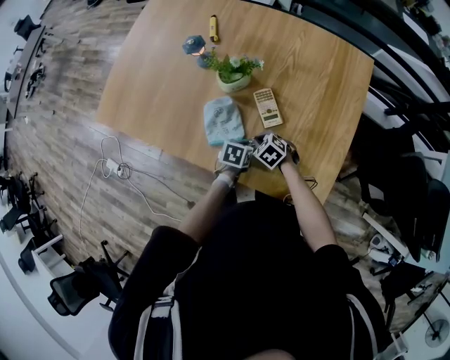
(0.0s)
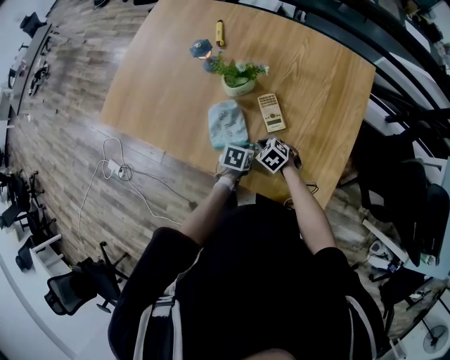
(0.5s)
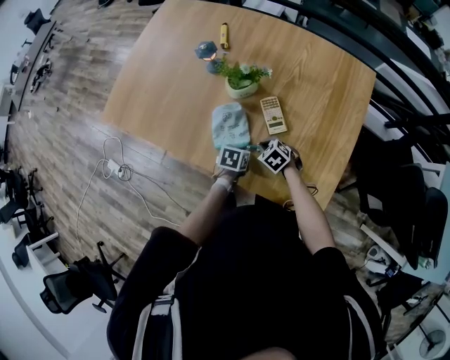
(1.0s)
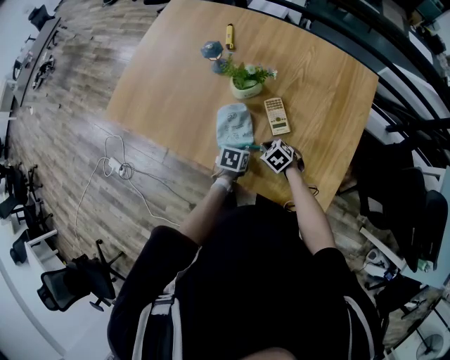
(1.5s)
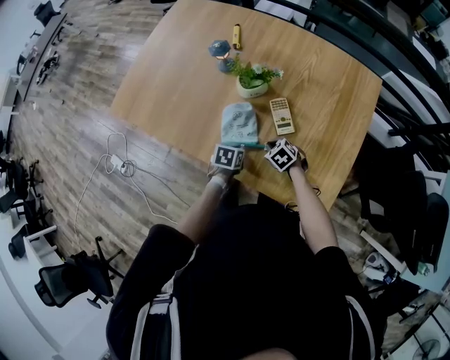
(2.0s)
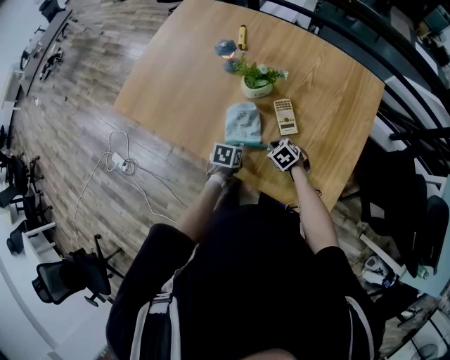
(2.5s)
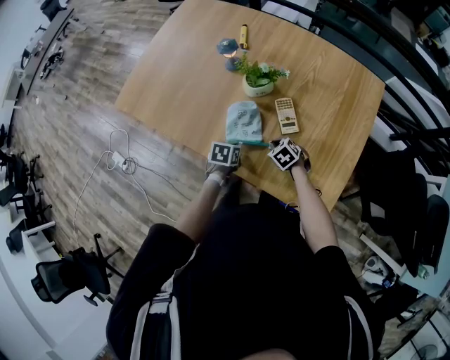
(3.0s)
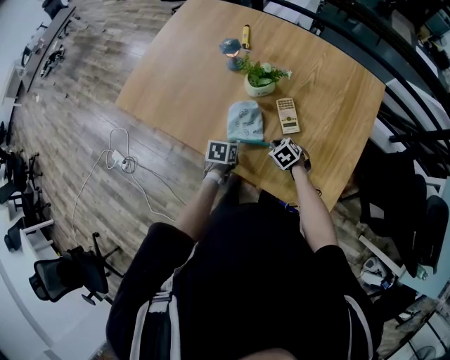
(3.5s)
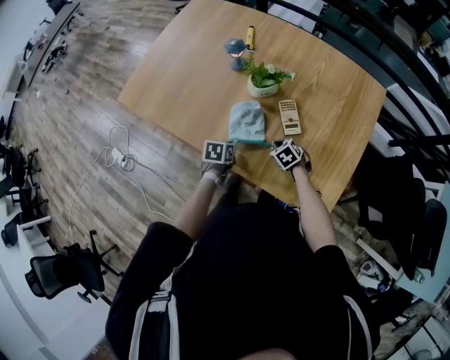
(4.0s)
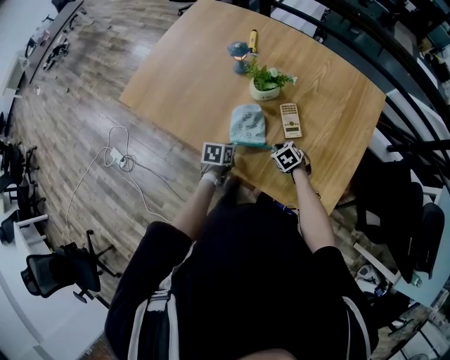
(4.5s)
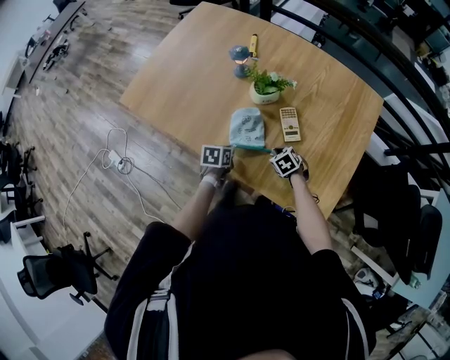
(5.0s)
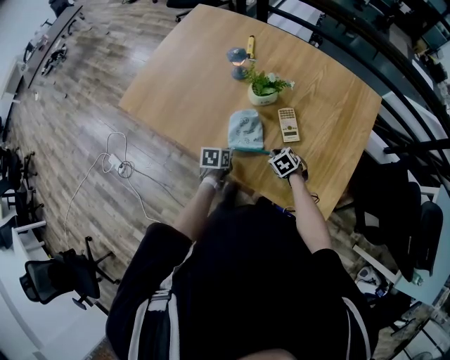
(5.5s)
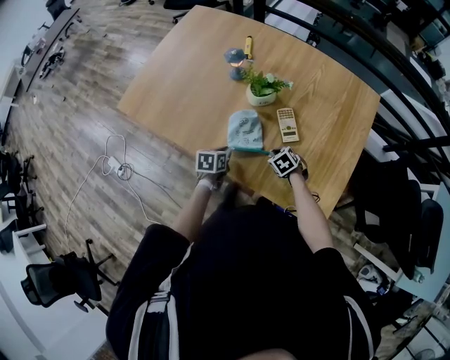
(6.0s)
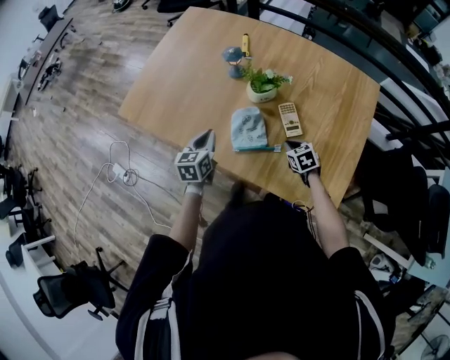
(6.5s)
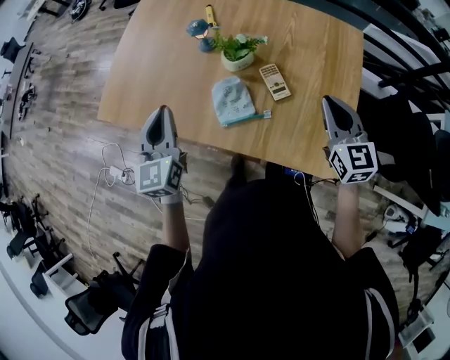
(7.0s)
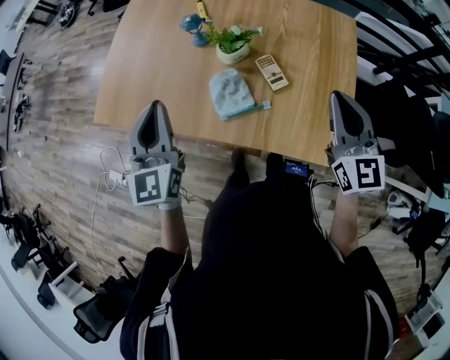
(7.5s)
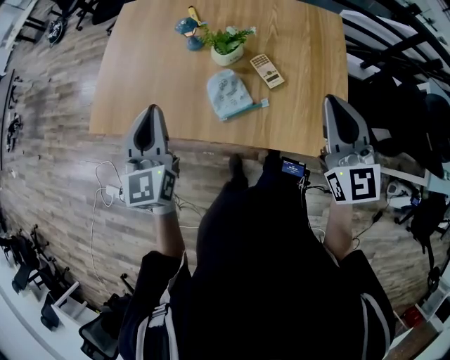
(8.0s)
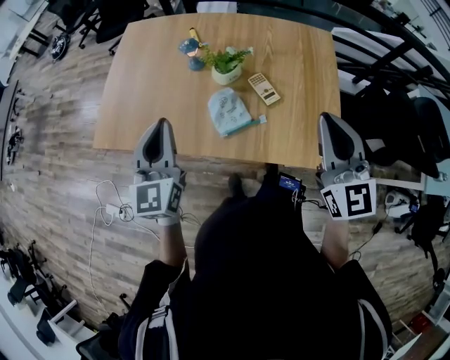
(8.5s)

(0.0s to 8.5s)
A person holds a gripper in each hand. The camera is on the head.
0.0s - 2.0s: The left gripper goes approximately 5 cm to the left.
2.0s - 4.0s: The left gripper moves to the left, approximately 5 cm.
4.0s - 6.5s: The left gripper shifts about 15 cm upward and to the left, and turns by about 30 degrees; the right gripper shifts by roughly 5 cm.
6.5s - 8.5s: The right gripper goes about 40 cm upward, and tilts its fingers some 50 degrees upward; the left gripper is displaced upward by some 20 cm, and changes its angle by roughly 40 degrees.

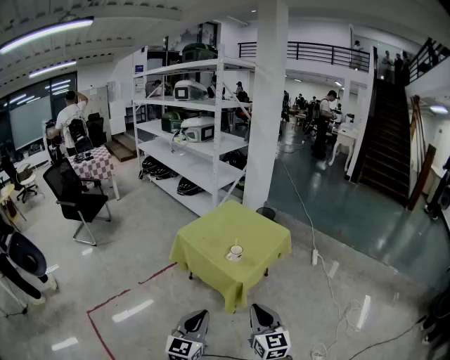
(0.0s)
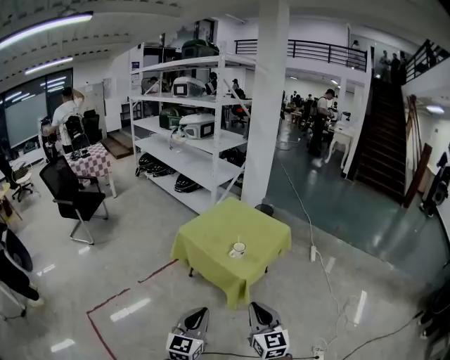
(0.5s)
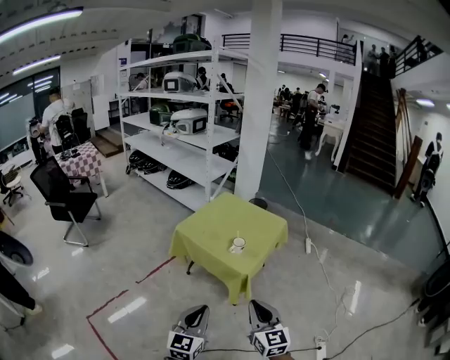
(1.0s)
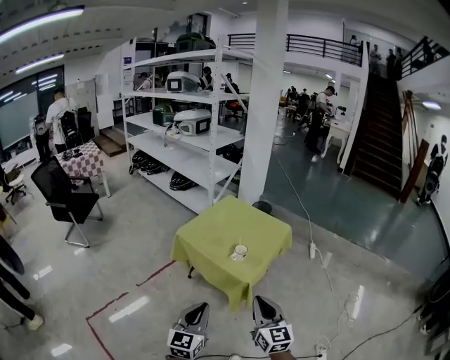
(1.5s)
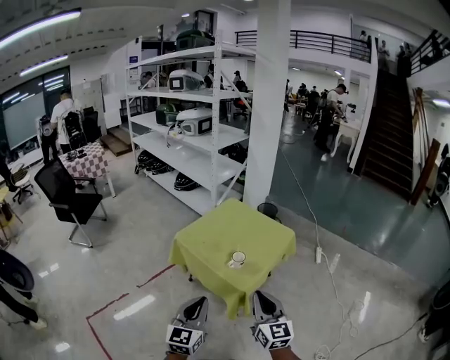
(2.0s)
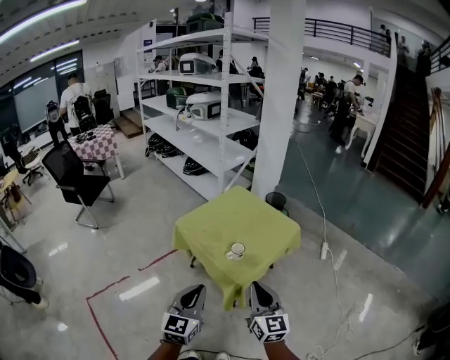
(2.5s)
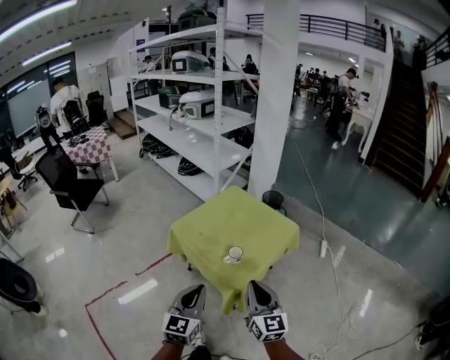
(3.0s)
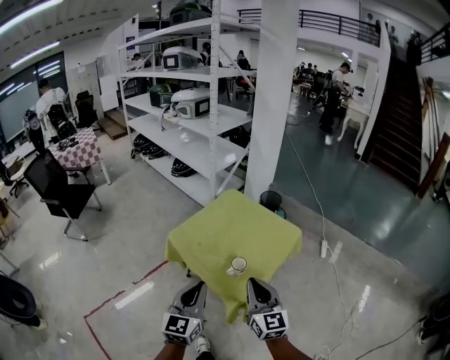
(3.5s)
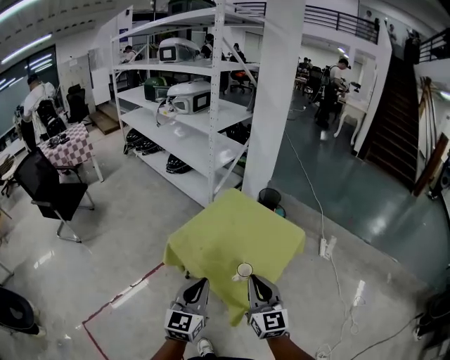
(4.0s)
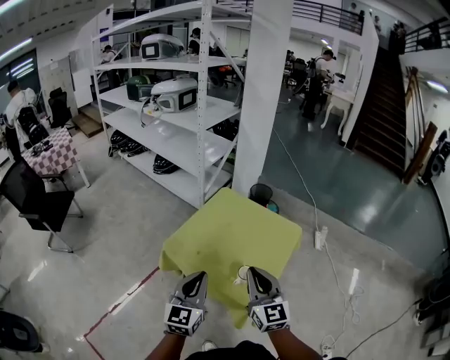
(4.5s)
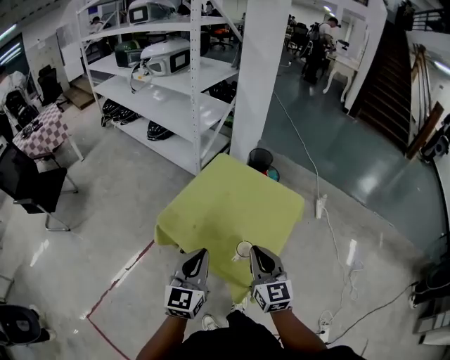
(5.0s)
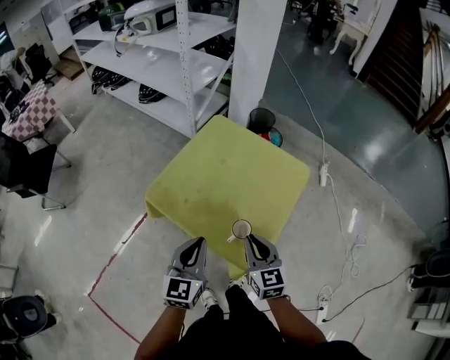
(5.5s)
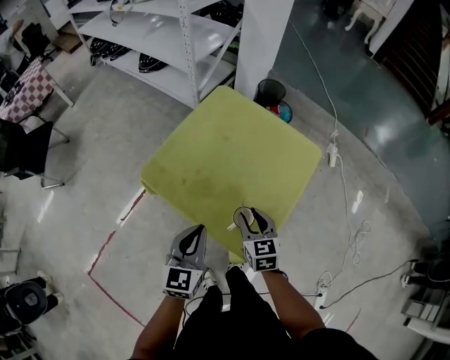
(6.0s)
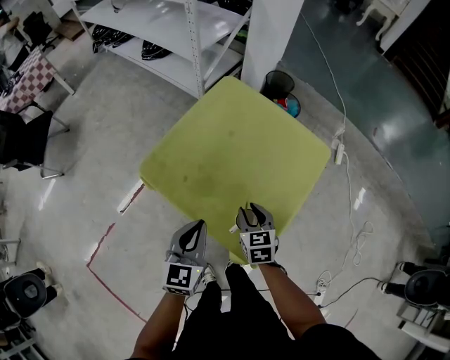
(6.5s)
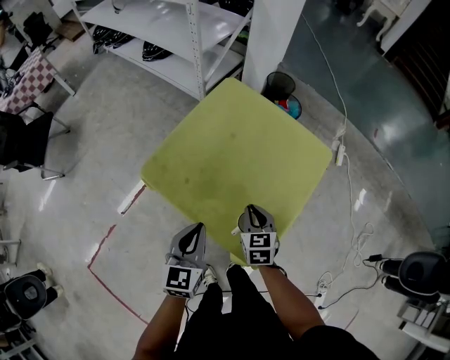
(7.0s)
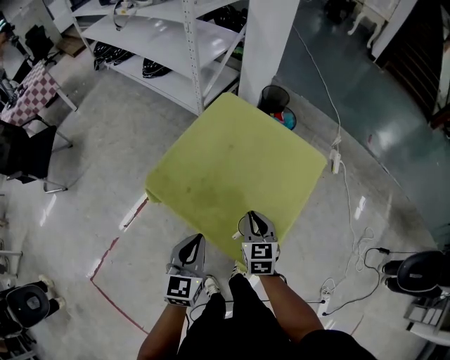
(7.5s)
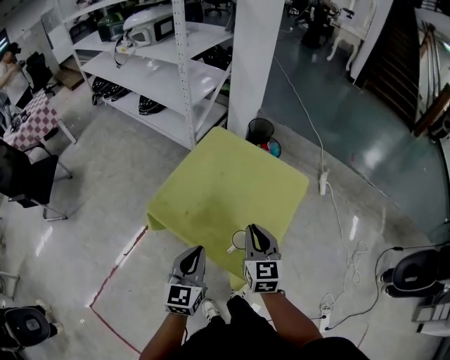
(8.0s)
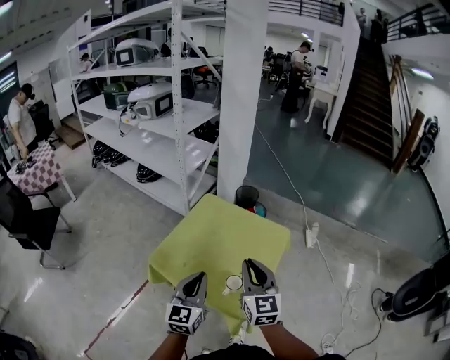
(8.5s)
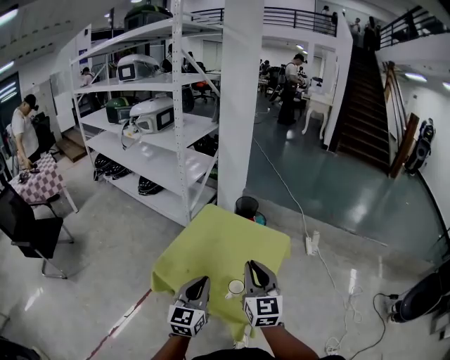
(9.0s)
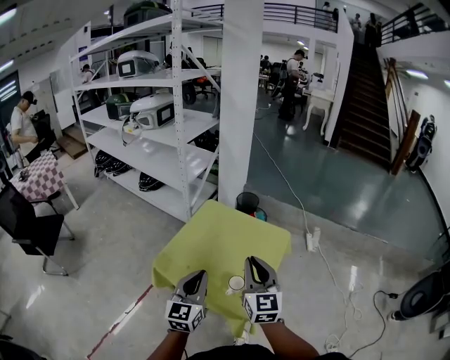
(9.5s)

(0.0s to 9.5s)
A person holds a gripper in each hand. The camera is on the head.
0.0s - 2.0s: Both grippers travel together forward, about 15 cm.
2.0s - 4.0s: The grippers both shift forward by some 20 cm.
4.0s - 5.5s: Both grippers move downward and forward, approximately 15 cm. The right gripper turns by some 20 degrees.
5.5s - 7.5s: The right gripper shifts approximately 10 cm forward and downward, and opens, then closes once more. Meanwhile the left gripper goes some 5 cm downward.
7.5s - 9.5s: The right gripper is displaced upward by about 30 cm, and tilts its fingers approximately 30 degrees upward; the left gripper travels upward by approximately 15 cm, and turns by approximately 20 degrees.

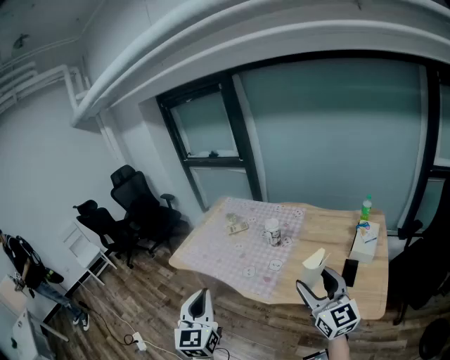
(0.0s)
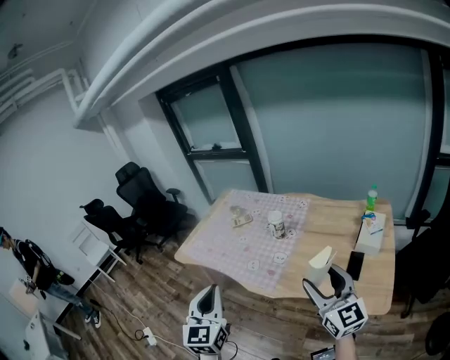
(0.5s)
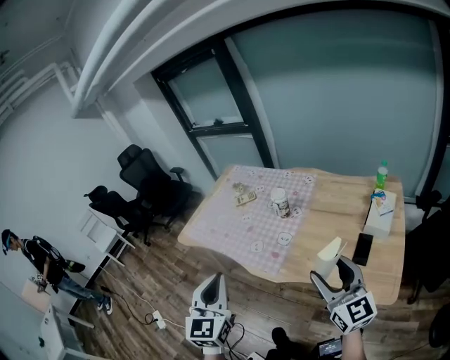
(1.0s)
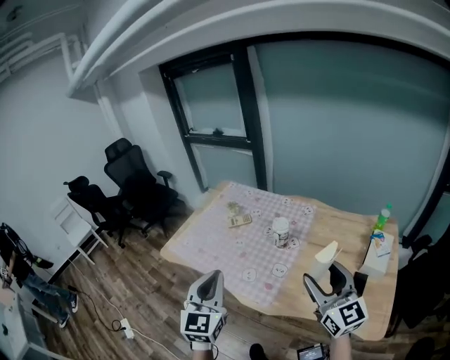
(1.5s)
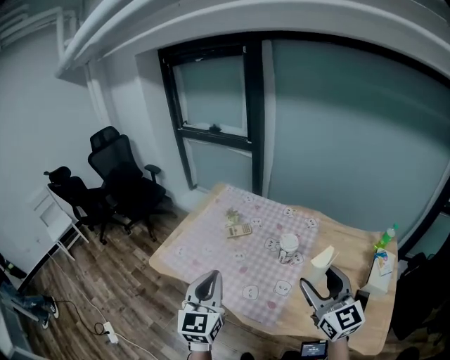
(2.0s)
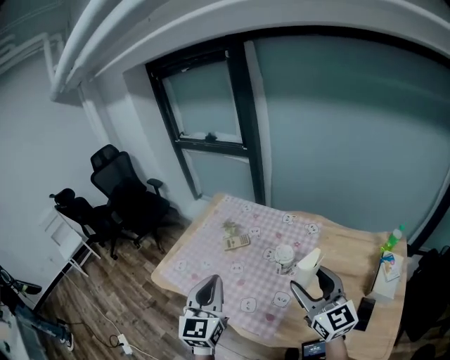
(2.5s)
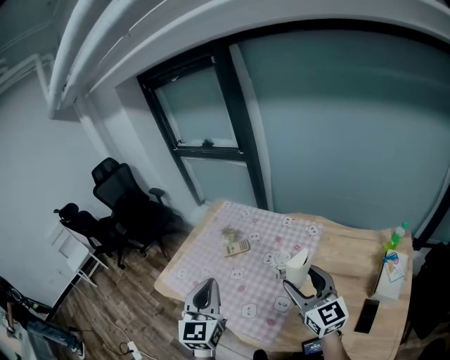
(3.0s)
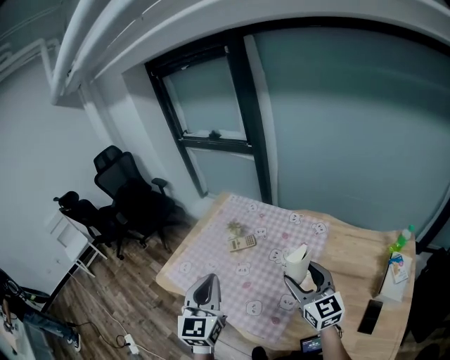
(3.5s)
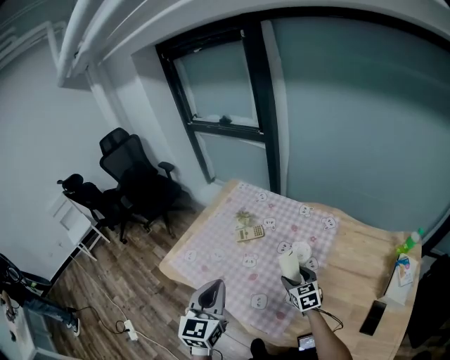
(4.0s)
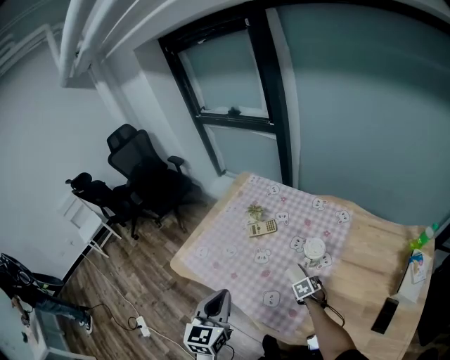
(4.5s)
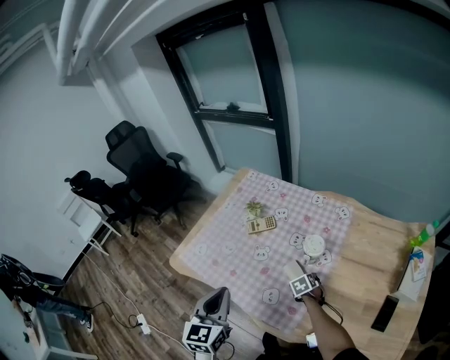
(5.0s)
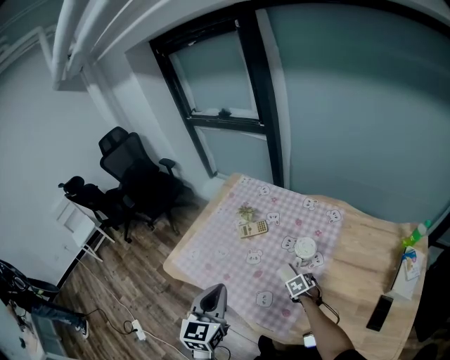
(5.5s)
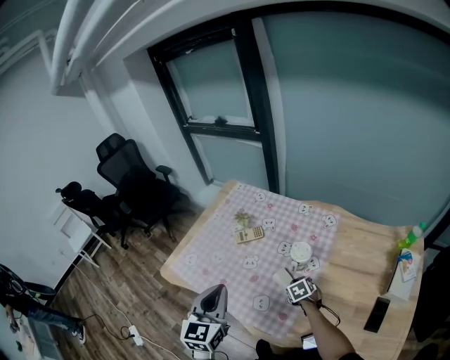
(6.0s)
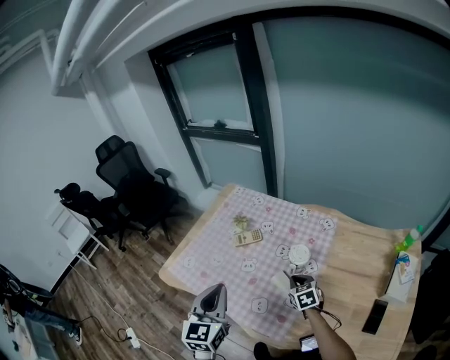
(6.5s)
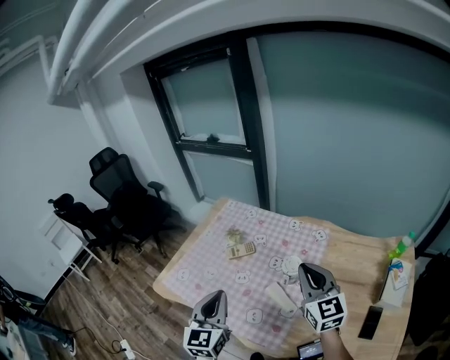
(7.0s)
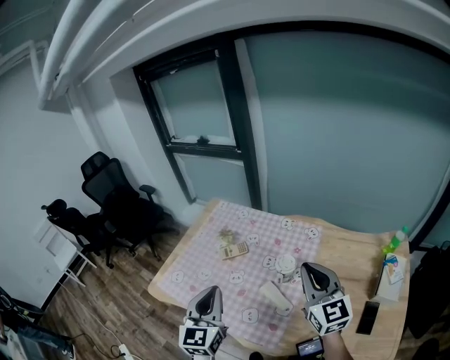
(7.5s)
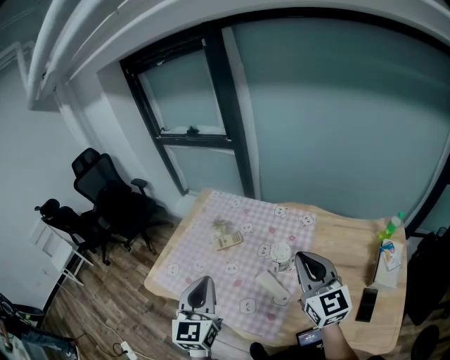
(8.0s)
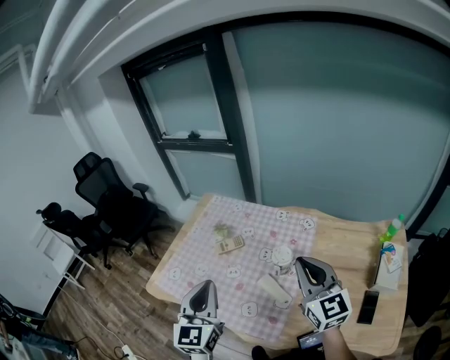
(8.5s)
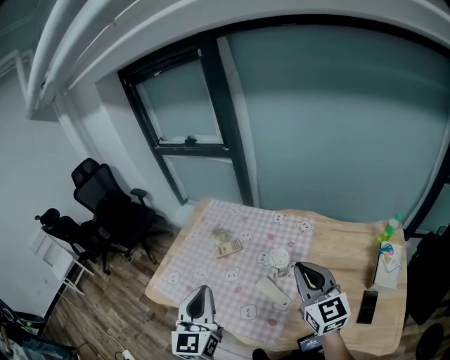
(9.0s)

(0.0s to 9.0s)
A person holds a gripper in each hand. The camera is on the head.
0.0s - 2.0s: Both grippers travel together forward, some 30 cm.
2.0s - 4.5s: The right gripper goes some 50 cm downward, and tilts its fingers roughly 70 degrees downward. The left gripper goes about 10 cm downward and forward.
4.5s - 7.0s: The left gripper ends up some 5 cm from where it was. Meanwhile the right gripper is displaced upward by some 40 cm, tilts its fingers about 60 degrees upward, and closes its fingers.
7.0s - 9.0s: The left gripper goes about 5 cm upward.
